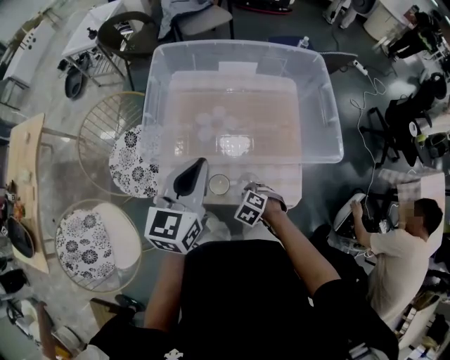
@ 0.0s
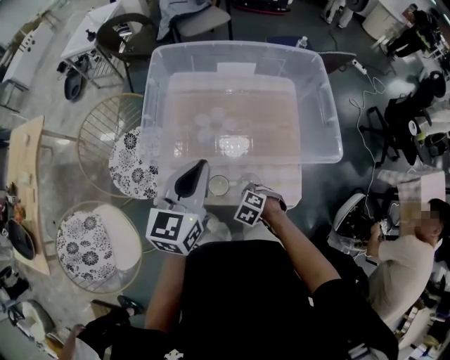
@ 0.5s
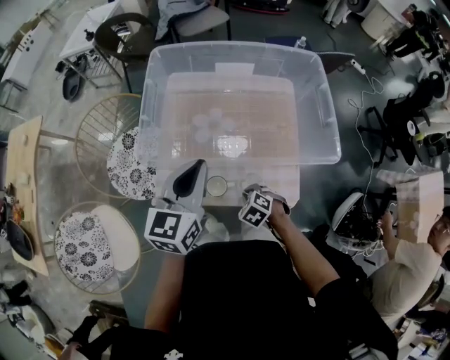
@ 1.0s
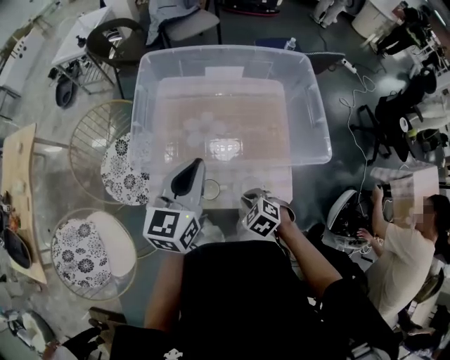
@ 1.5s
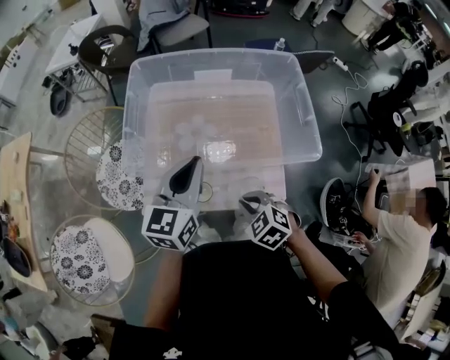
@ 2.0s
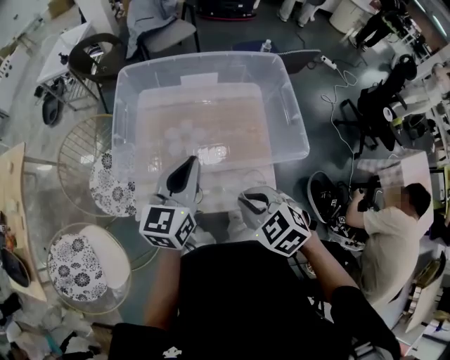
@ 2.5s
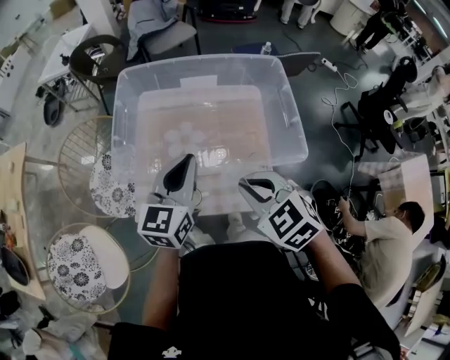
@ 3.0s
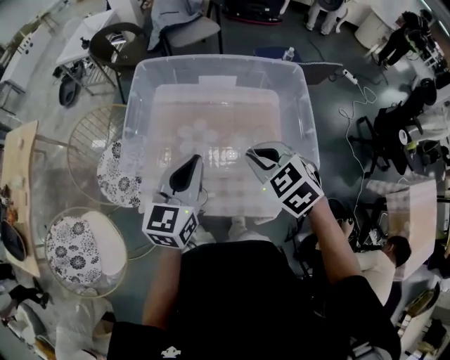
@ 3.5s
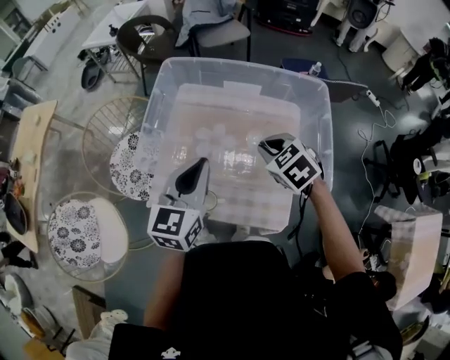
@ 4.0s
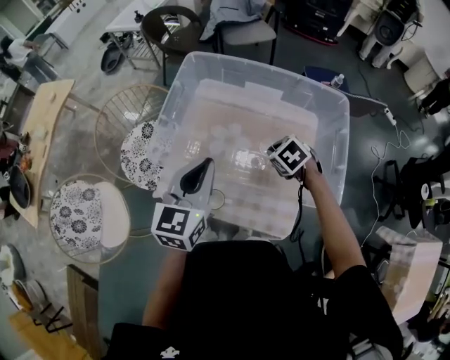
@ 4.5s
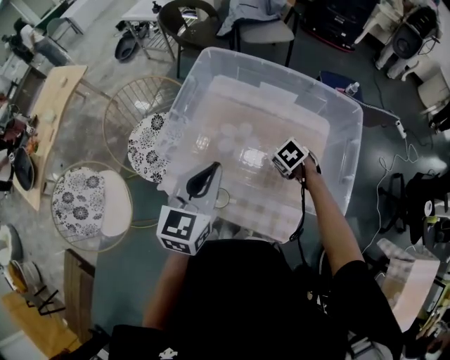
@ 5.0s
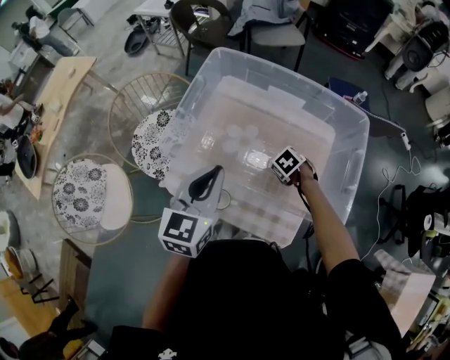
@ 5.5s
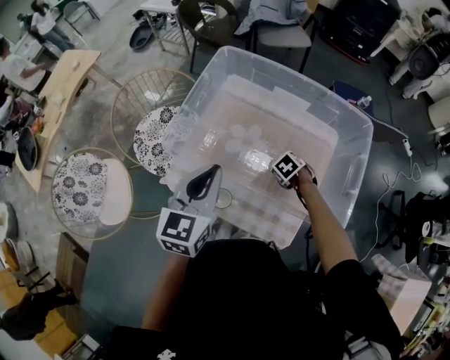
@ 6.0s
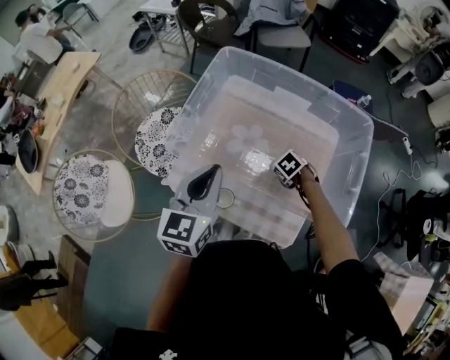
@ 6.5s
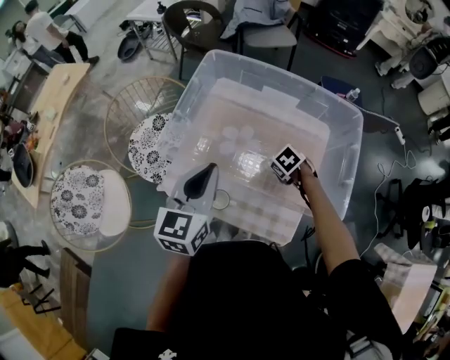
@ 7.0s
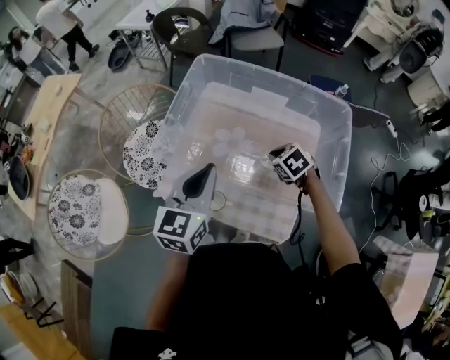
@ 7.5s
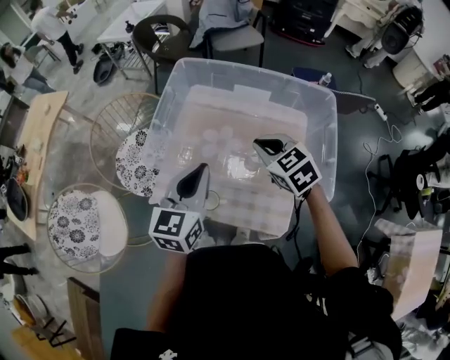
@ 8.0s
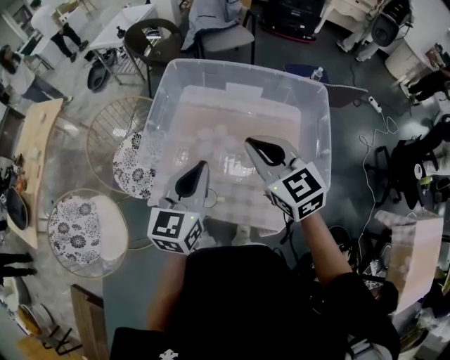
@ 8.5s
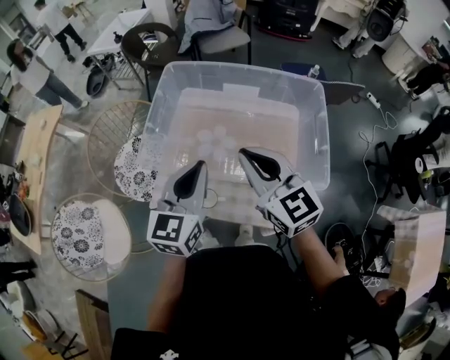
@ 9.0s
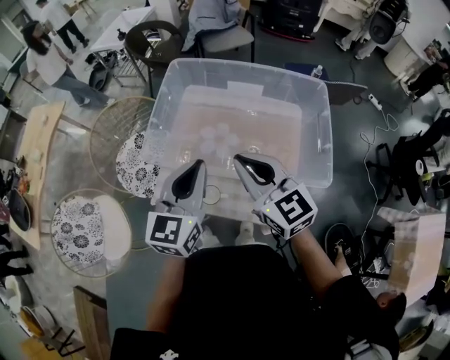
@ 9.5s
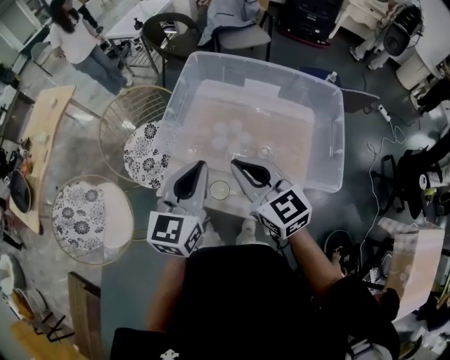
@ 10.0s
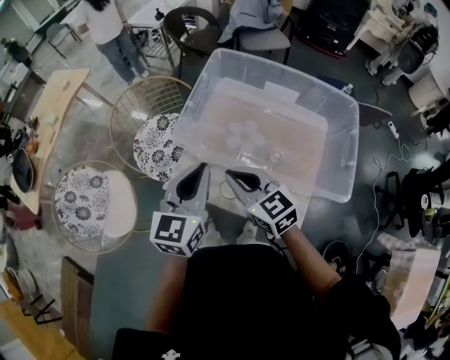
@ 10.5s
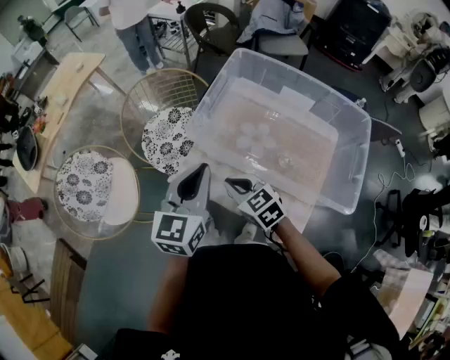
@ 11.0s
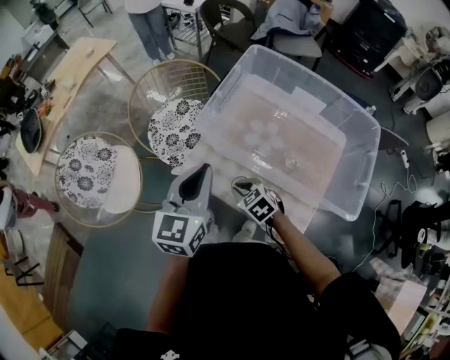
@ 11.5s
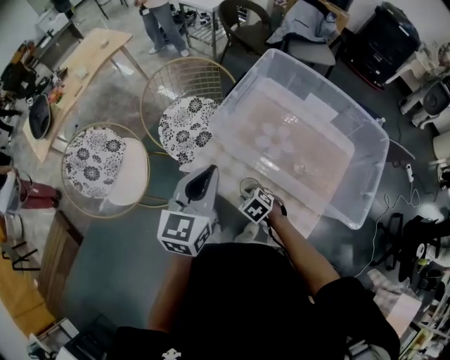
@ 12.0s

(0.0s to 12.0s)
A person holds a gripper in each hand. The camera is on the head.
0.0s - 2.0s: The right gripper is displaced upward by roughly 15 cm.
2.0s - 4.0s: The right gripper is displaced forward and upward by roughly 20 cm.
4.0s - 6.0s: The right gripper moves downward, some 25 cm, and turns by some 30 degrees.
6.0s - 8.0s: The right gripper moves upward, approximately 25 cm, and angles its fingers upward, by roughly 40 degrees.
8.0s - 10.0s: The left gripper changes place by about 5 cm, while the right gripper travels to the left, backward and upward by approximately 15 cm, and turns by some 30 degrees.
10.0s - 12.0s: The left gripper travels to the left by about 10 cm. The right gripper heads downward, covering roughly 30 cm, tips its fingers downward by about 50 degrees, and opens up.

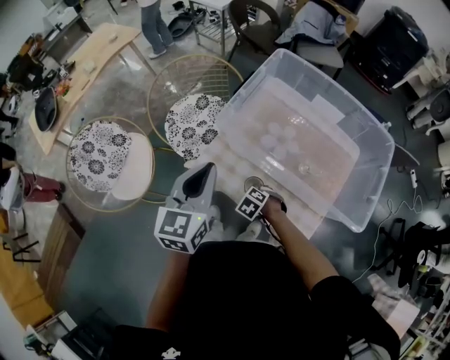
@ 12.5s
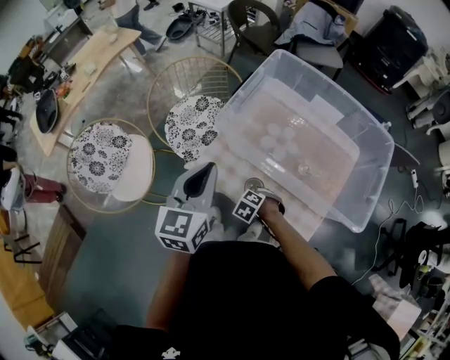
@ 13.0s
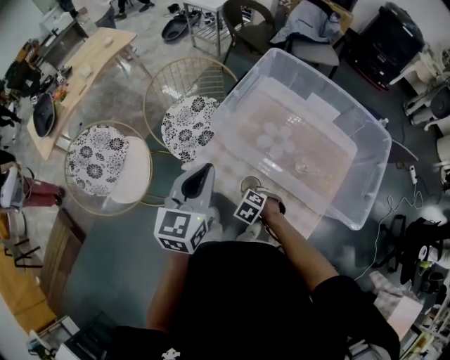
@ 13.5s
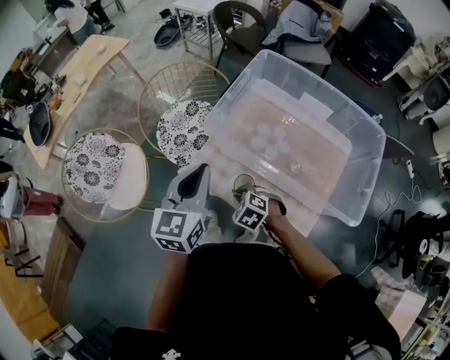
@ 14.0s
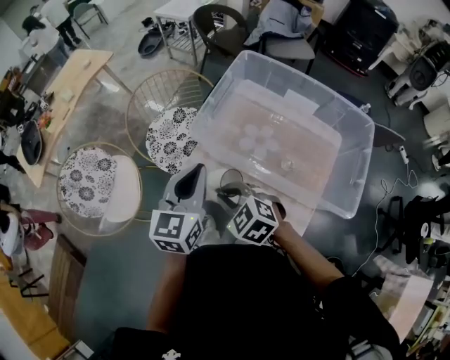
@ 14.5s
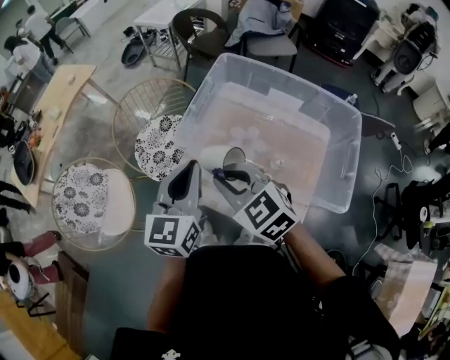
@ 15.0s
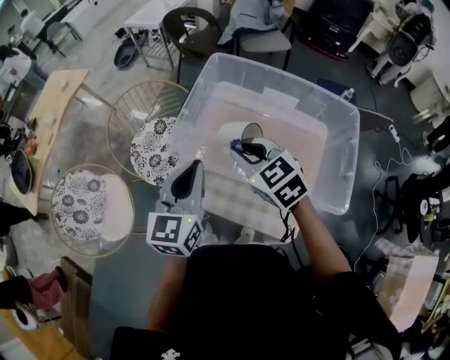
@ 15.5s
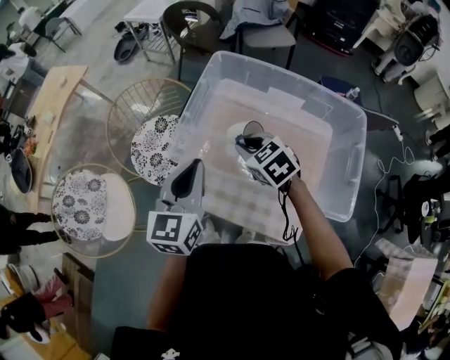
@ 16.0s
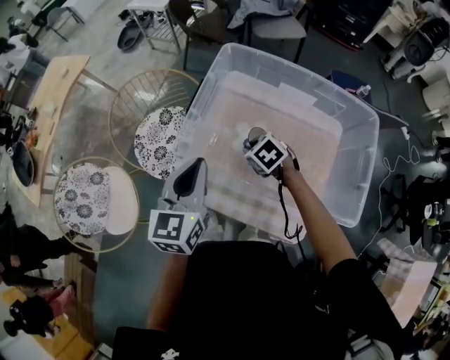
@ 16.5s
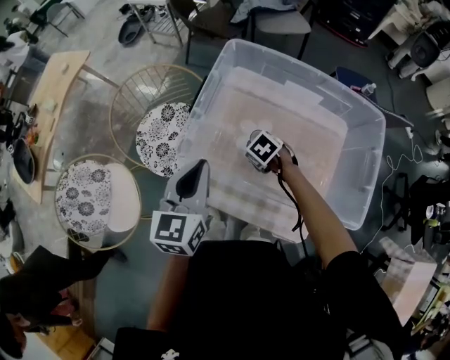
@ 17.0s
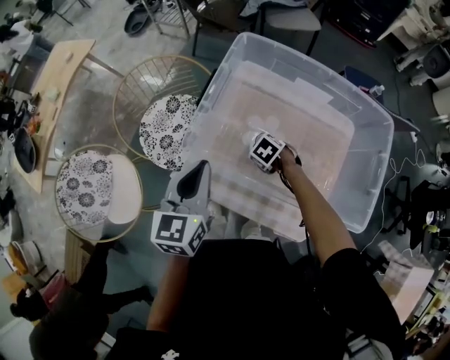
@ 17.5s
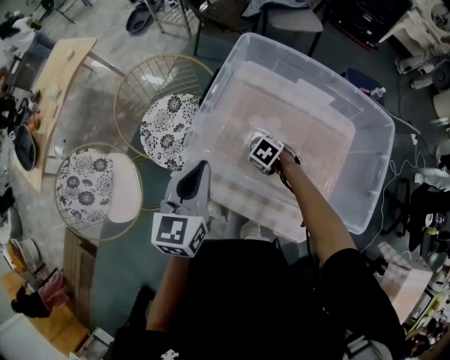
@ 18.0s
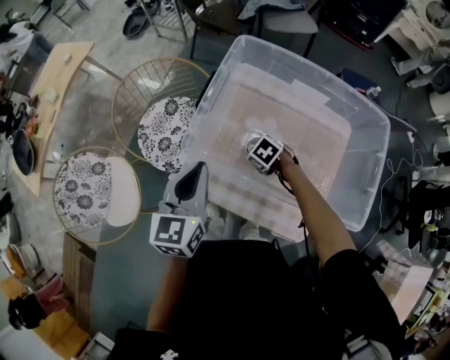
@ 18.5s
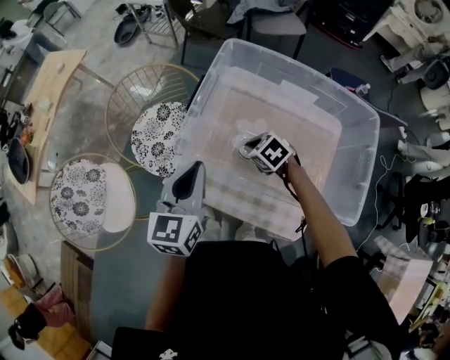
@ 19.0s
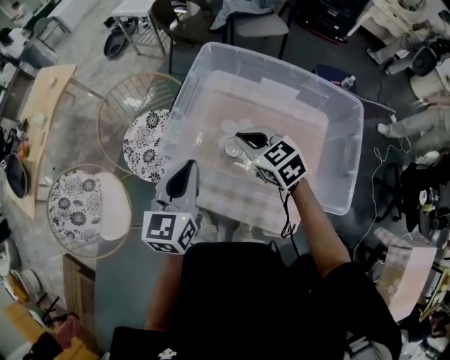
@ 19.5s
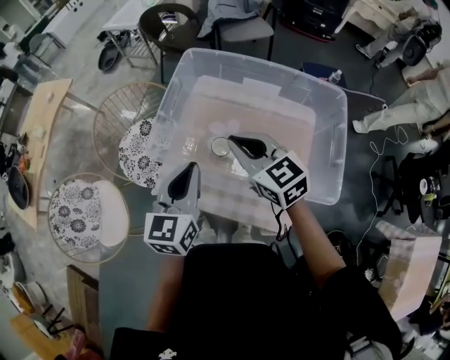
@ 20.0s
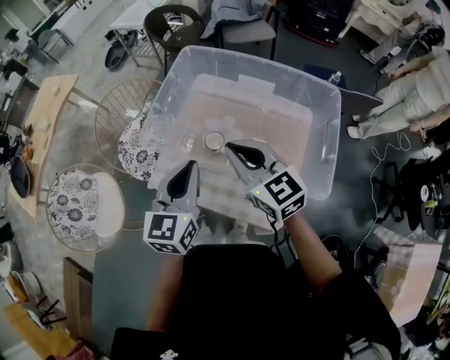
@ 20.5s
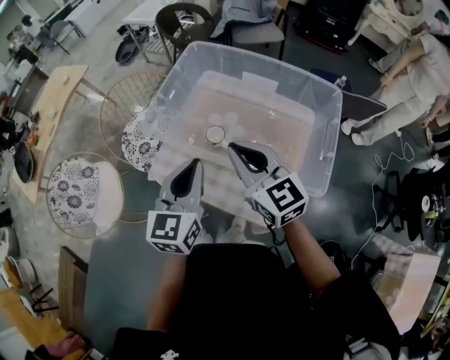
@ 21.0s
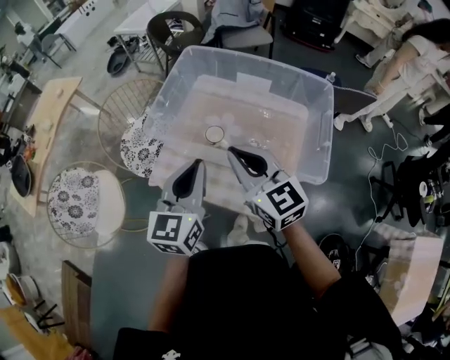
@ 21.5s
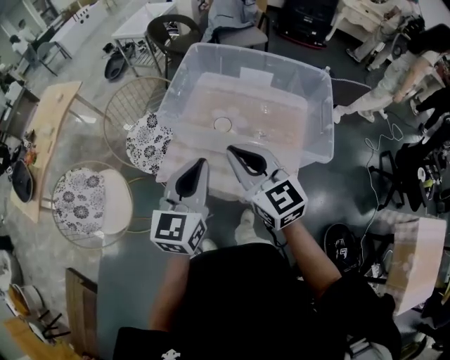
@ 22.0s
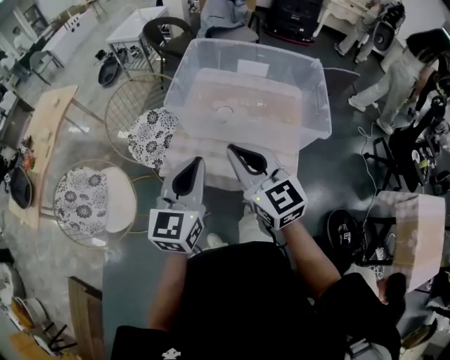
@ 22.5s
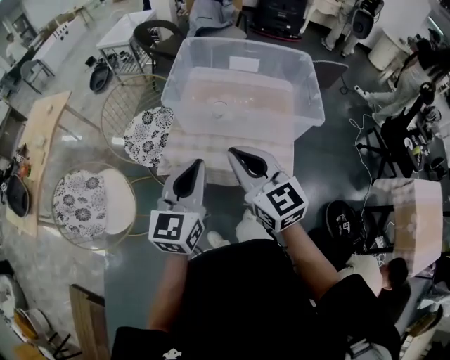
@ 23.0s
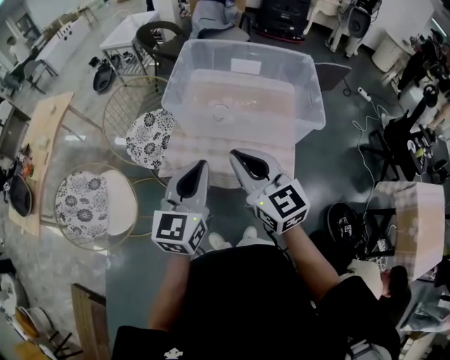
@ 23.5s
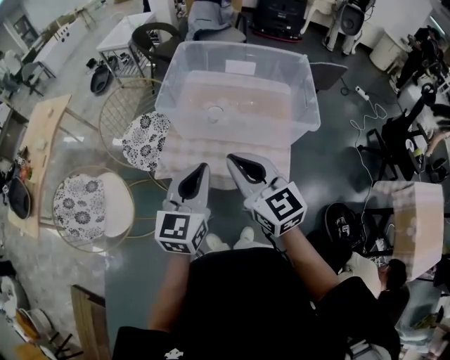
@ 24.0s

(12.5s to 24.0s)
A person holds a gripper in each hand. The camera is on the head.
12.5s - 14.5s: The right gripper is displaced upward by roughly 25 cm, and tips its fingers upward by about 30 degrees.
14.5s - 16.5s: The left gripper shifts some 10 cm forward and to the right; the right gripper goes about 25 cm forward, to the right and downward, and changes its angle by some 30 degrees.
16.5s - 18.5s: The right gripper travels downward by some 10 cm.
18.5s - 20.0s: The left gripper ends up approximately 10 cm from where it was. Meanwhile the right gripper shifts approximately 30 cm upward, tips its fingers upward by approximately 50 degrees, and closes.
20.0s - 22.0s: Both grippers travel together backward, some 15 cm.
22.0s - 24.0s: The grippers both shift backward by some 10 cm.

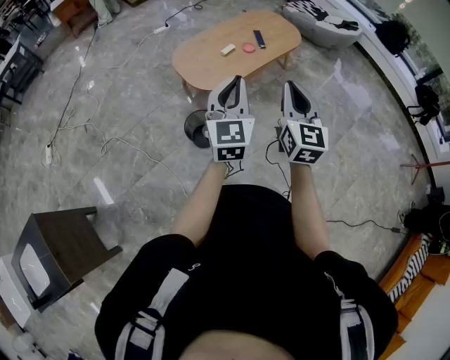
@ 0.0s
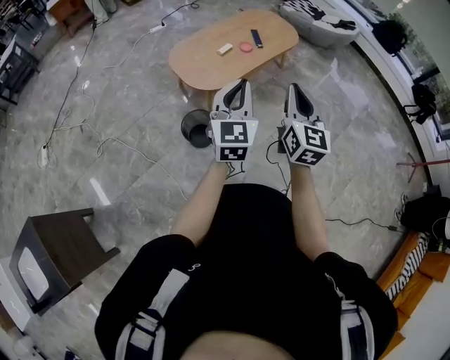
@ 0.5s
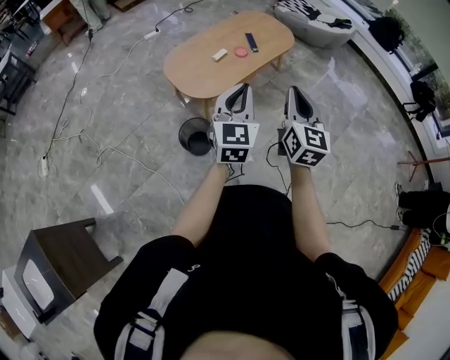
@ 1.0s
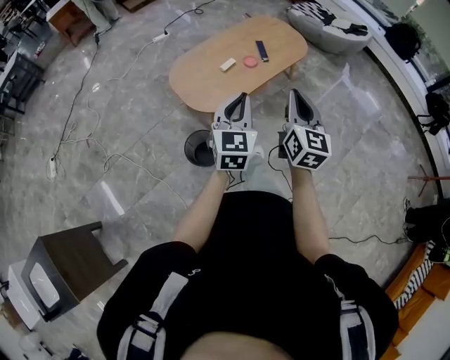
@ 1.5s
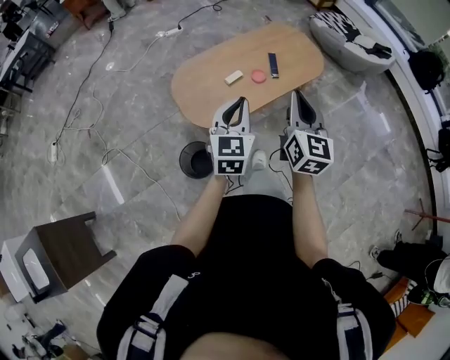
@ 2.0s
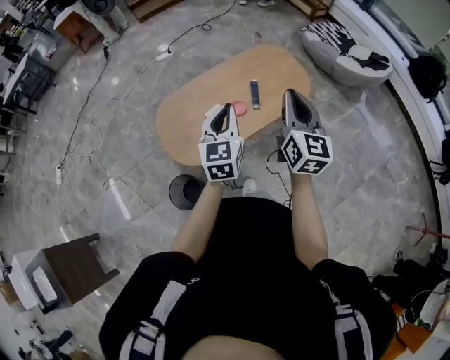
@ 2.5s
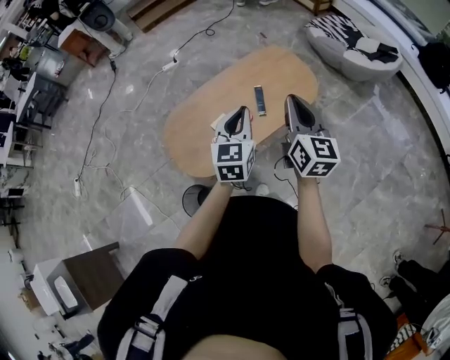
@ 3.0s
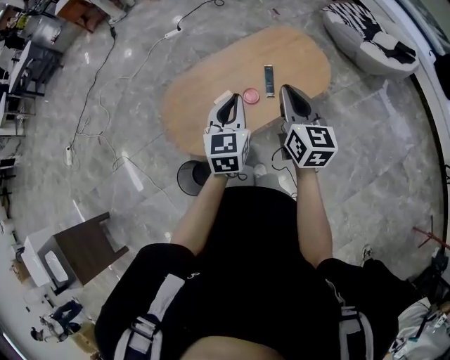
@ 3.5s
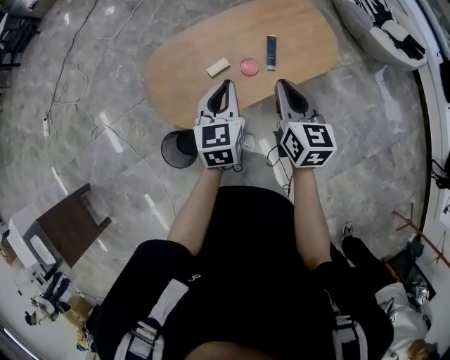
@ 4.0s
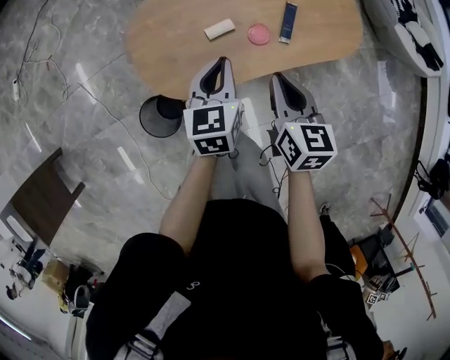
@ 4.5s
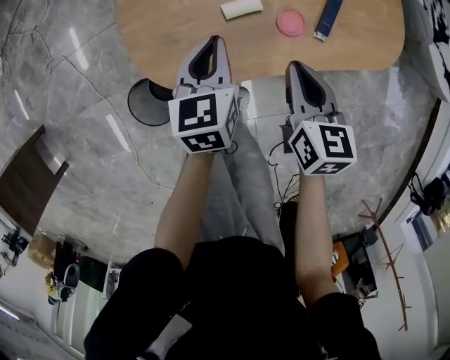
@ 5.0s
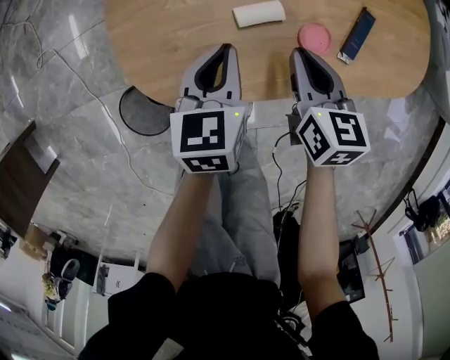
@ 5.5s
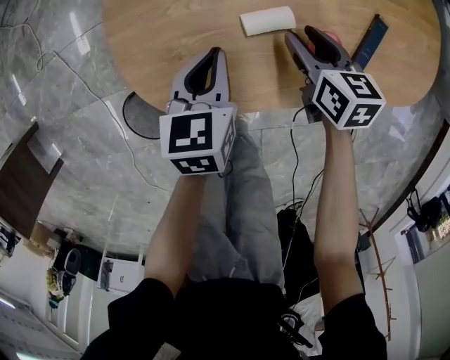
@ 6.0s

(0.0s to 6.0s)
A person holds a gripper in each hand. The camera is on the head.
0.0s - 2.0s: Both grippers travel together forward, approximately 30 cm.
2.0s - 4.0s: The right gripper is displaced forward and downward by approximately 25 cm, and rotates roughly 30 degrees; the left gripper travels forward by about 20 cm, and rotates about 20 degrees.
4.0s - 6.0s: The right gripper travels downward and forward by roughly 50 cm, turns by some 40 degrees, and opens up, while the left gripper travels downward by roughly 35 cm, and swivels about 30 degrees.
